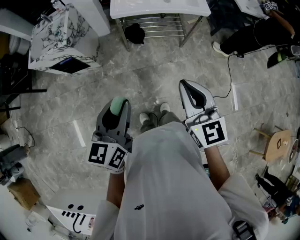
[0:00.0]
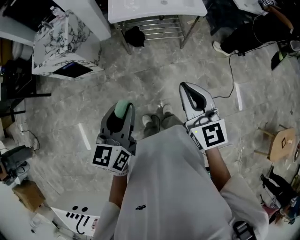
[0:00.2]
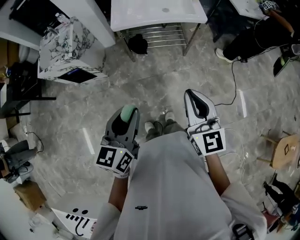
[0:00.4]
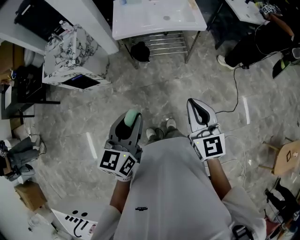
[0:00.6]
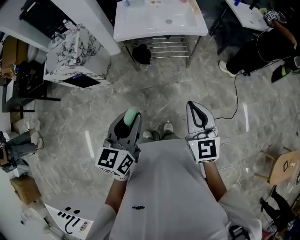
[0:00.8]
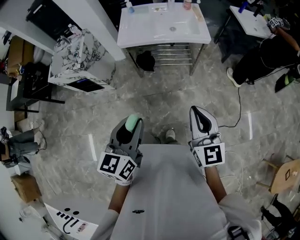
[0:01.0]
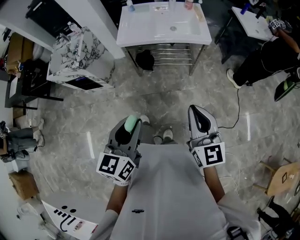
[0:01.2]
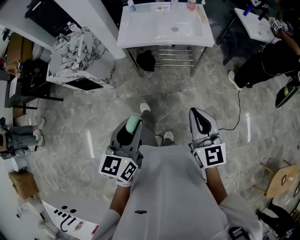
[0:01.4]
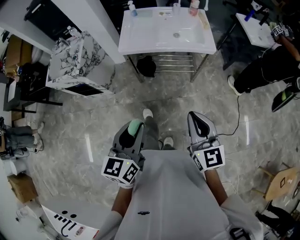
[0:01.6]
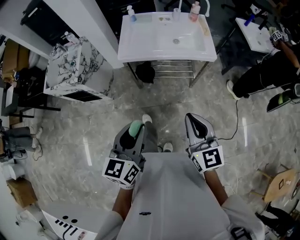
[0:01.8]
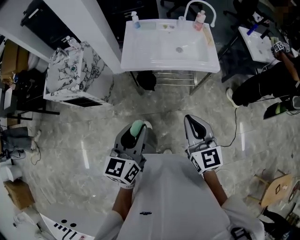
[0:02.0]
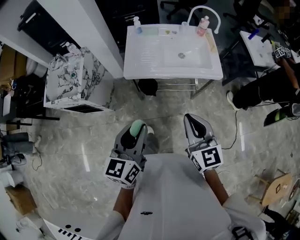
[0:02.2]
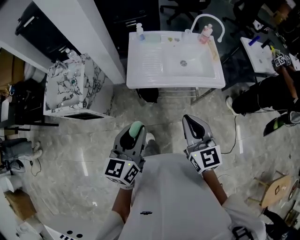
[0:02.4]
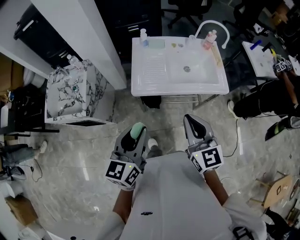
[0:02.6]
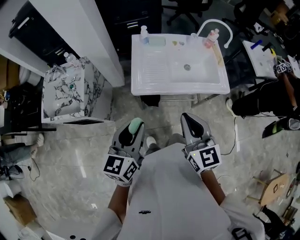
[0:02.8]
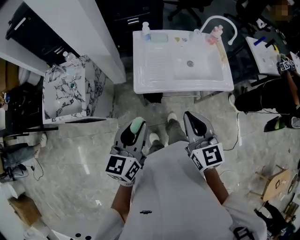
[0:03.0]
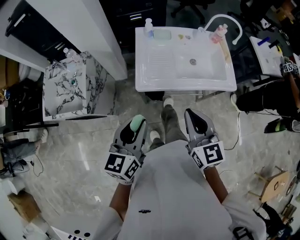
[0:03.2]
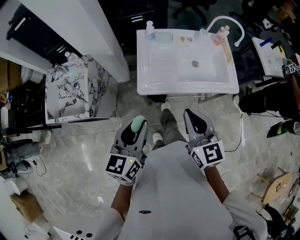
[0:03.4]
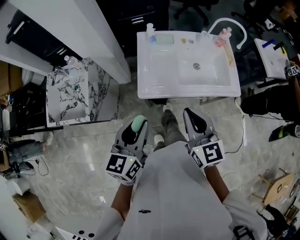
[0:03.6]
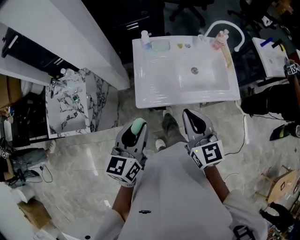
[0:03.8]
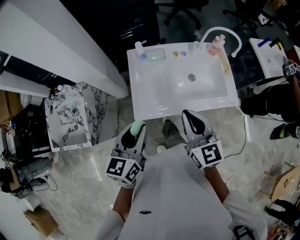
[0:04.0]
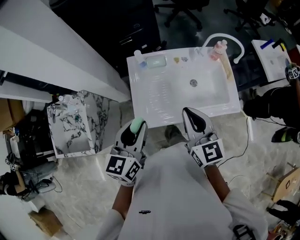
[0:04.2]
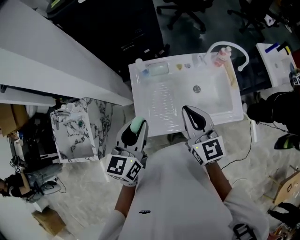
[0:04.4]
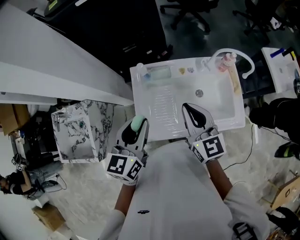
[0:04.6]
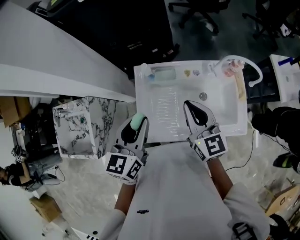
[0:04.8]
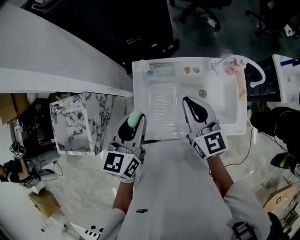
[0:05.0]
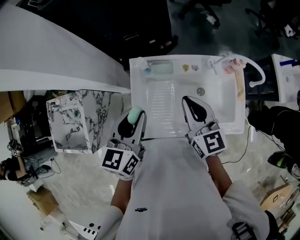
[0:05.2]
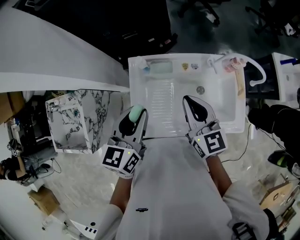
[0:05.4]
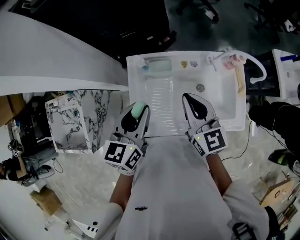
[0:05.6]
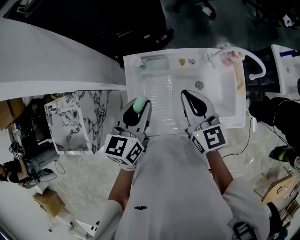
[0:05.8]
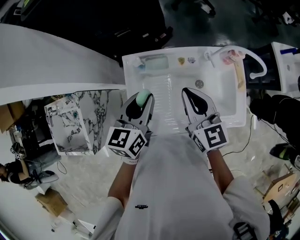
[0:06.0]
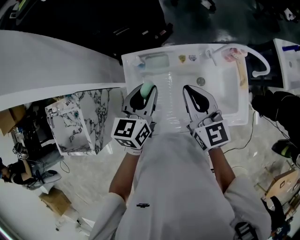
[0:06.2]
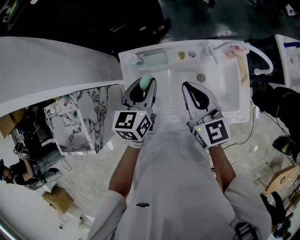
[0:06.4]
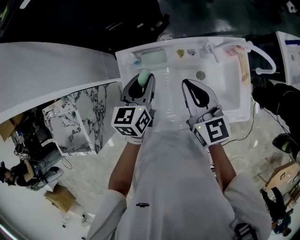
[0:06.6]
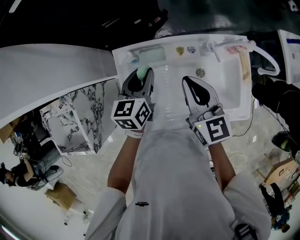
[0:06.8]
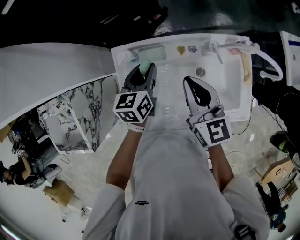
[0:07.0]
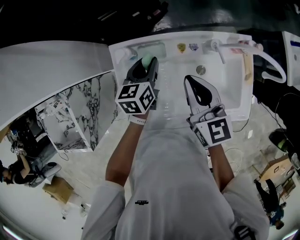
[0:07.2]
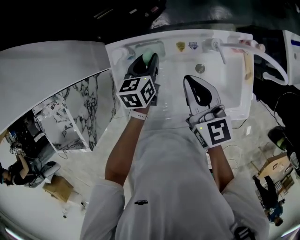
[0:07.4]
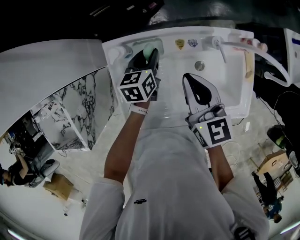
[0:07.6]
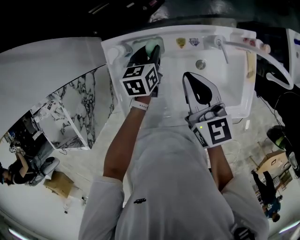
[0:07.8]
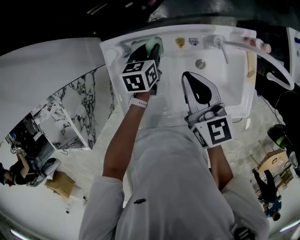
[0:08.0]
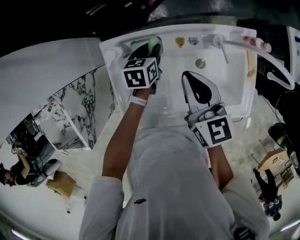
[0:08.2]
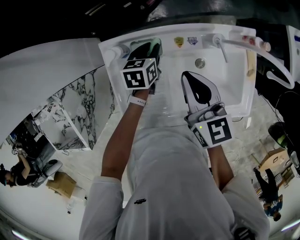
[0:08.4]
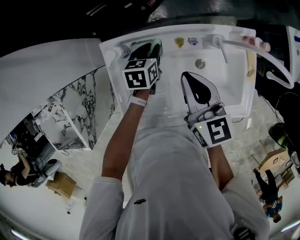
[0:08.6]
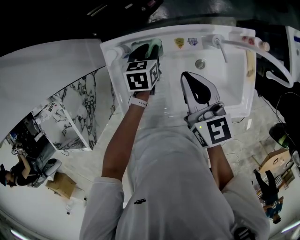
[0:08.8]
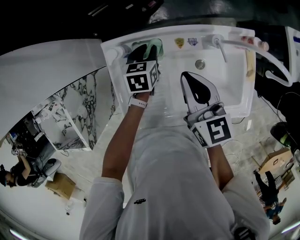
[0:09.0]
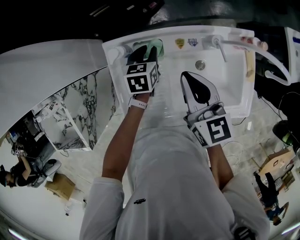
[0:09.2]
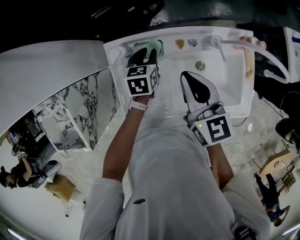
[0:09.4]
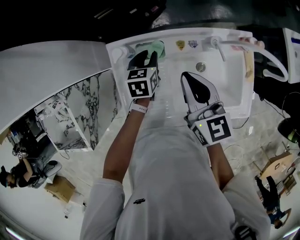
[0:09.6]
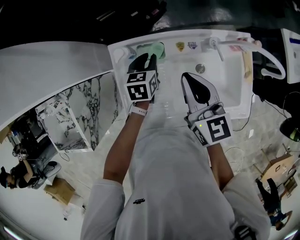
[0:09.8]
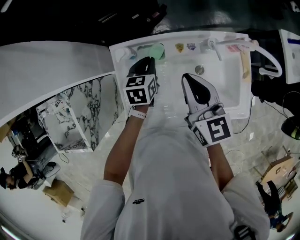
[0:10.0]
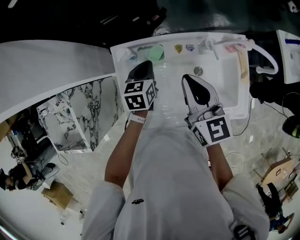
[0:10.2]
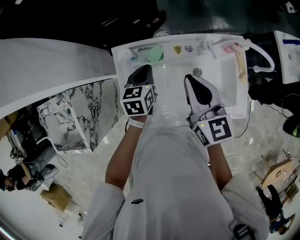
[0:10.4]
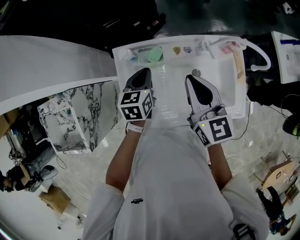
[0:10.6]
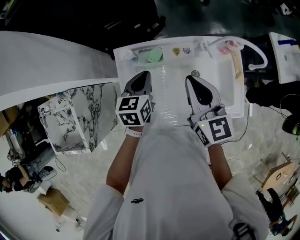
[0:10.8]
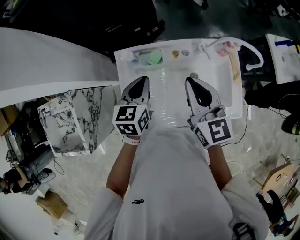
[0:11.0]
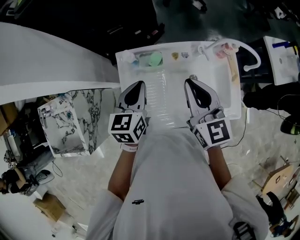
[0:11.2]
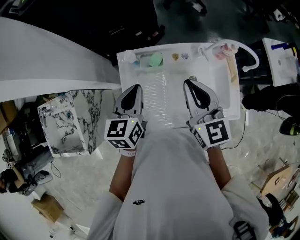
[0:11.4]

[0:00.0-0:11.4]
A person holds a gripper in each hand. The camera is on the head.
0:00.0 to 0:01.4: Both grippers move to the right, roughly 15 cm.
0:01.4 to 0:02.8: The grippers both shift forward and to the left by roughly 40 cm.
0:02.8 to 0:04.2: Both grippers move forward, roughly 25 cm.
0:04.2 to 0:05.6: The grippers both shift forward by about 15 cm.
0:05.6 to 0:07.2: The left gripper is displaced downward and forward by some 25 cm, while the right gripper travels forward and downward by roughly 10 cm.
0:07.2 to 0:08.6: The left gripper shifts about 10 cm downward.
0:08.6 to 0:10.0: The right gripper moves approximately 5 cm. The left gripper moves upward, roughly 5 cm.
0:10.0 to 0:11.4: The left gripper travels upward and backward by roughly 20 cm. Meanwhile the right gripper shifts approximately 10 cm upward and backward.

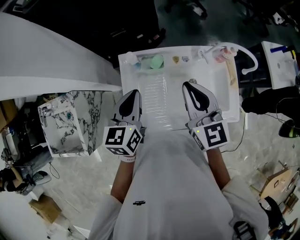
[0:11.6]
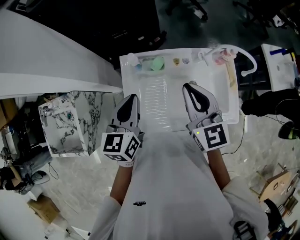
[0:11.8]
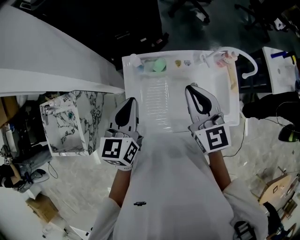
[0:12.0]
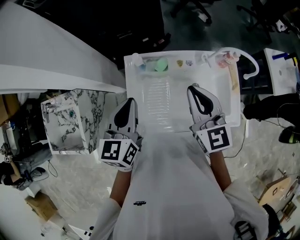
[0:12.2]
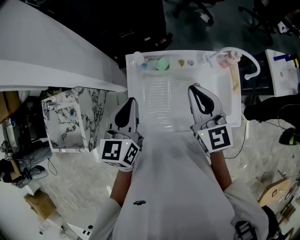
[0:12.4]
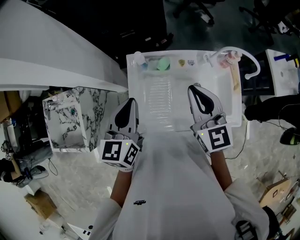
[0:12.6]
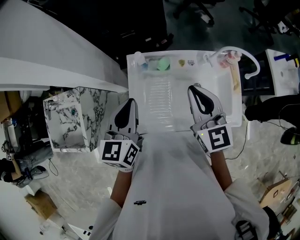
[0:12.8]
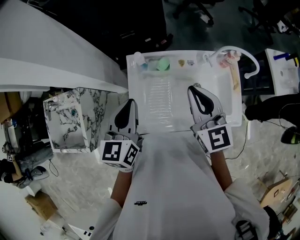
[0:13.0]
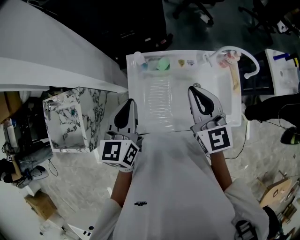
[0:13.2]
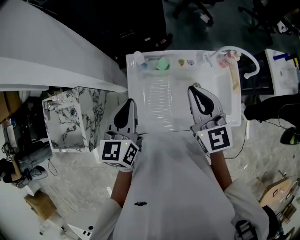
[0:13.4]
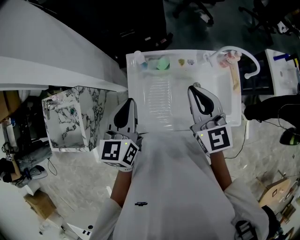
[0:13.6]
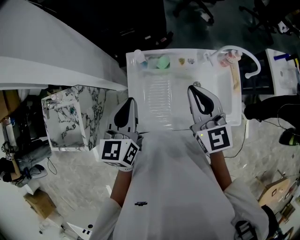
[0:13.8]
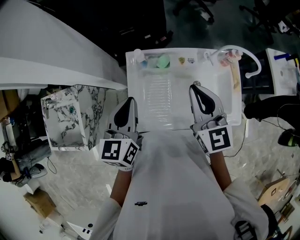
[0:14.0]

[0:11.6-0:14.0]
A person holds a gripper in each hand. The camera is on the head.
0:11.6 to 0:12.8: The left gripper travels upward by approximately 5 cm.
0:12.8 to 0:14.0: Both grippers stay about where they are.

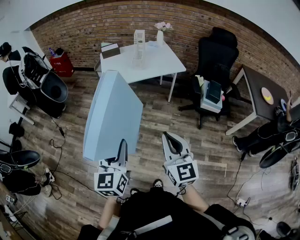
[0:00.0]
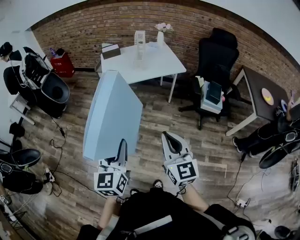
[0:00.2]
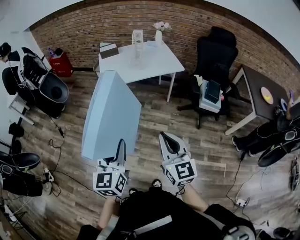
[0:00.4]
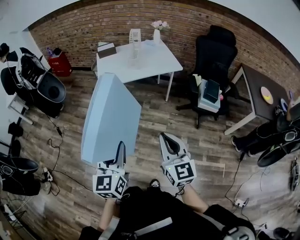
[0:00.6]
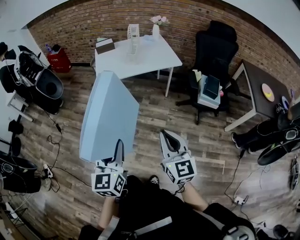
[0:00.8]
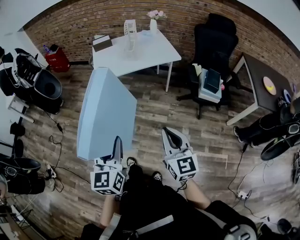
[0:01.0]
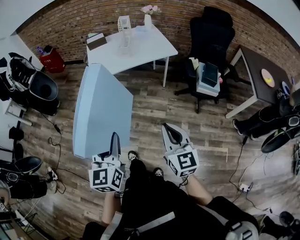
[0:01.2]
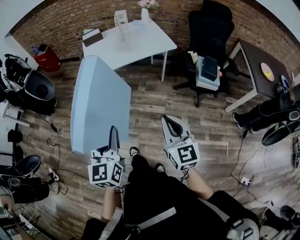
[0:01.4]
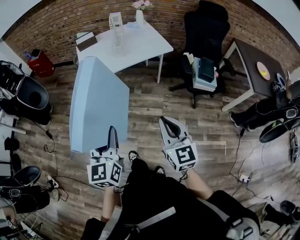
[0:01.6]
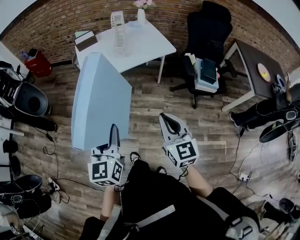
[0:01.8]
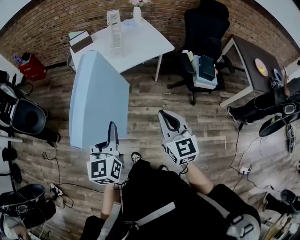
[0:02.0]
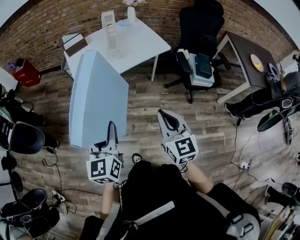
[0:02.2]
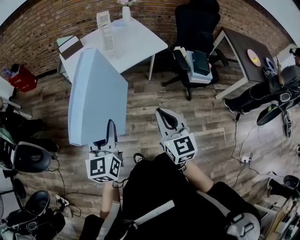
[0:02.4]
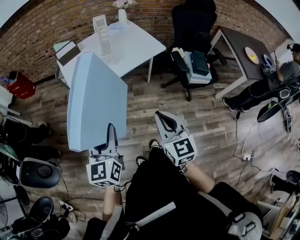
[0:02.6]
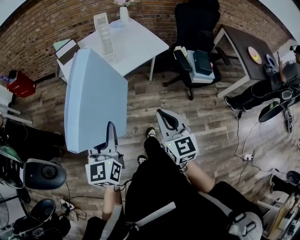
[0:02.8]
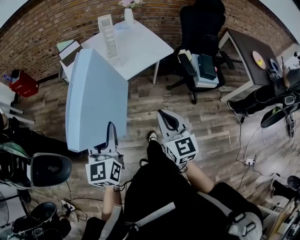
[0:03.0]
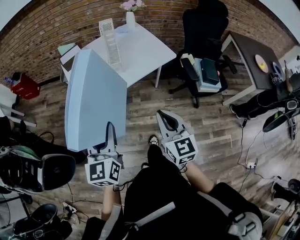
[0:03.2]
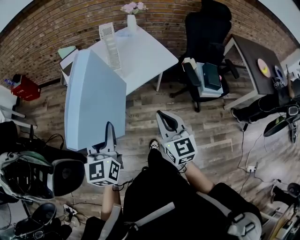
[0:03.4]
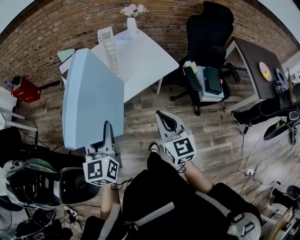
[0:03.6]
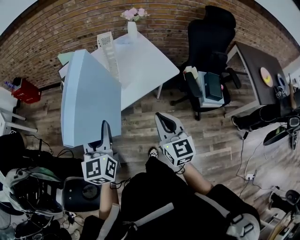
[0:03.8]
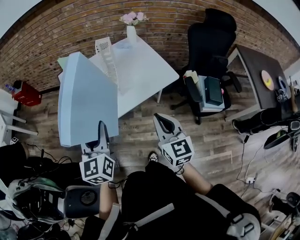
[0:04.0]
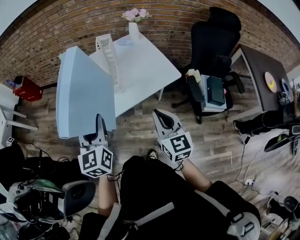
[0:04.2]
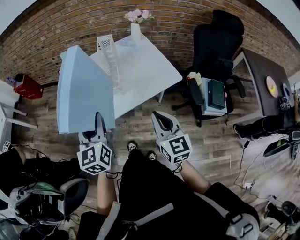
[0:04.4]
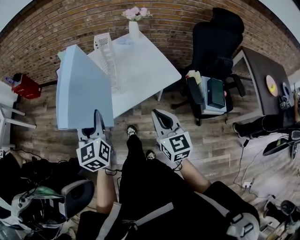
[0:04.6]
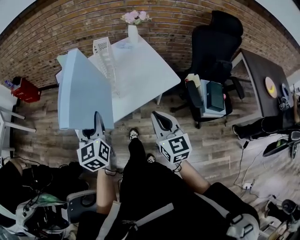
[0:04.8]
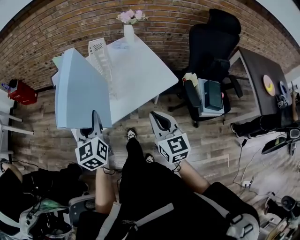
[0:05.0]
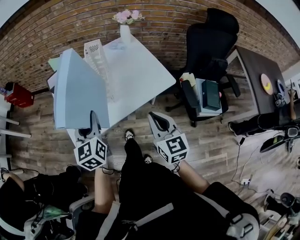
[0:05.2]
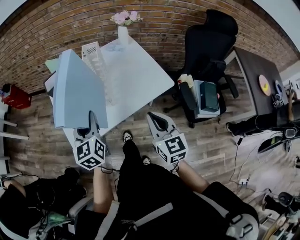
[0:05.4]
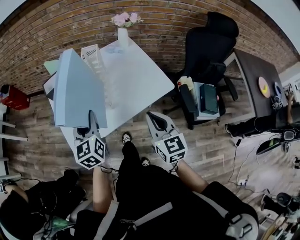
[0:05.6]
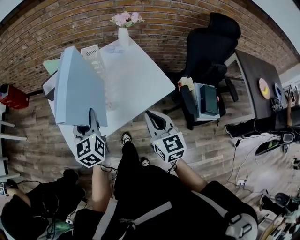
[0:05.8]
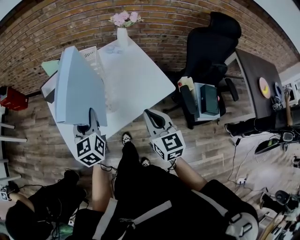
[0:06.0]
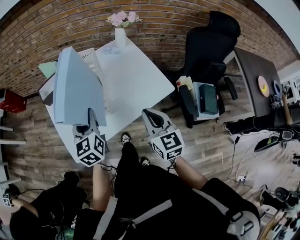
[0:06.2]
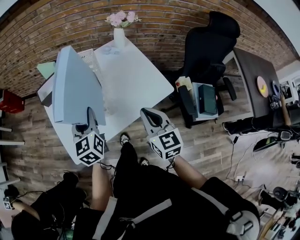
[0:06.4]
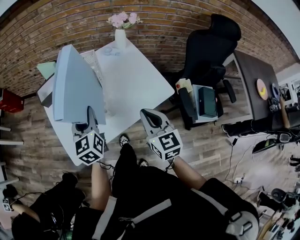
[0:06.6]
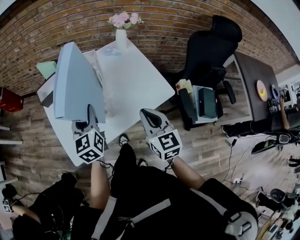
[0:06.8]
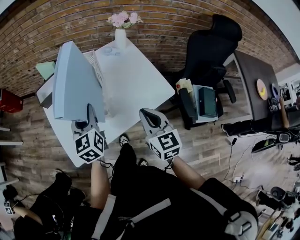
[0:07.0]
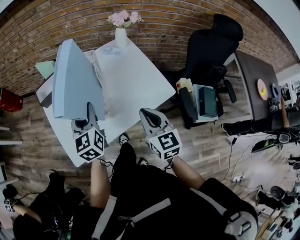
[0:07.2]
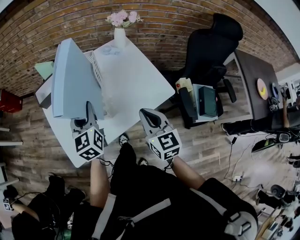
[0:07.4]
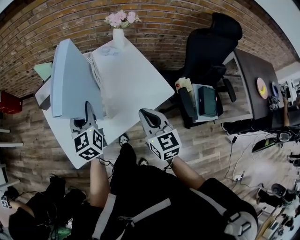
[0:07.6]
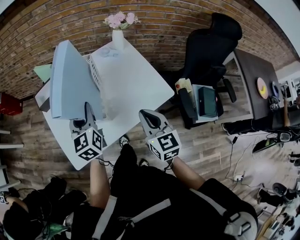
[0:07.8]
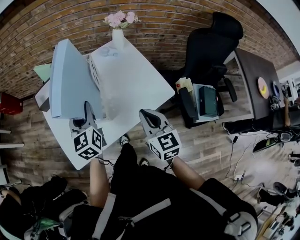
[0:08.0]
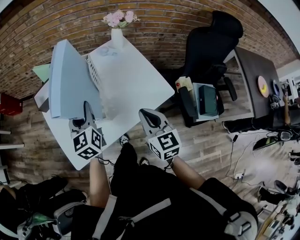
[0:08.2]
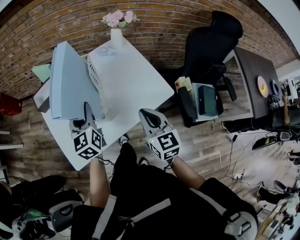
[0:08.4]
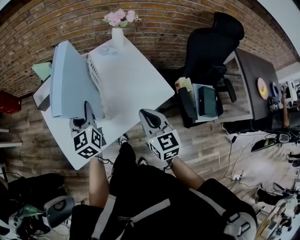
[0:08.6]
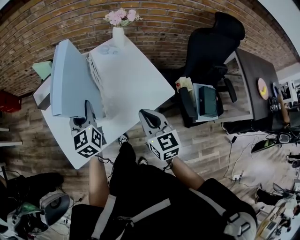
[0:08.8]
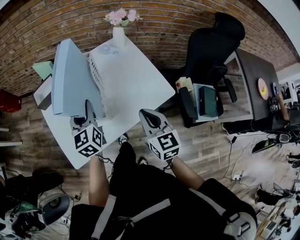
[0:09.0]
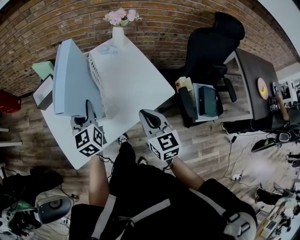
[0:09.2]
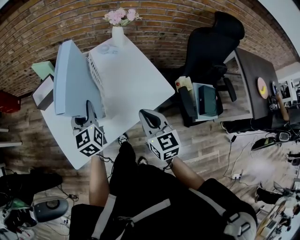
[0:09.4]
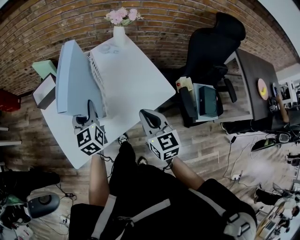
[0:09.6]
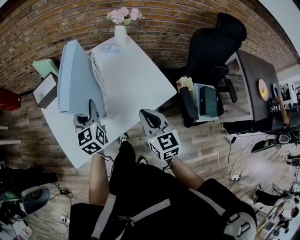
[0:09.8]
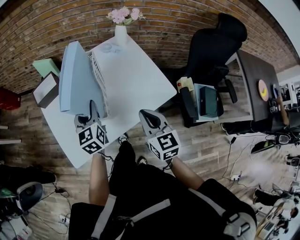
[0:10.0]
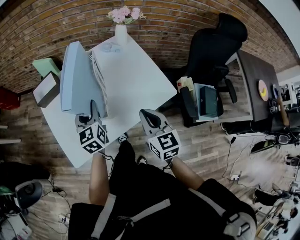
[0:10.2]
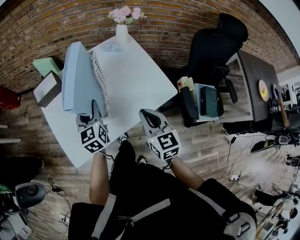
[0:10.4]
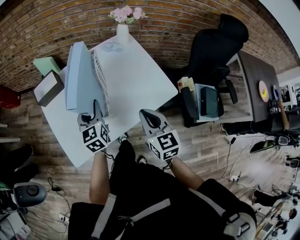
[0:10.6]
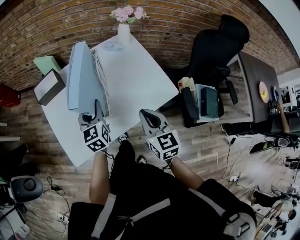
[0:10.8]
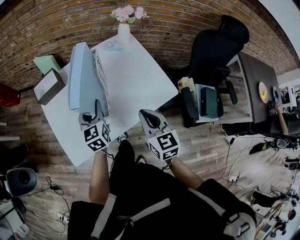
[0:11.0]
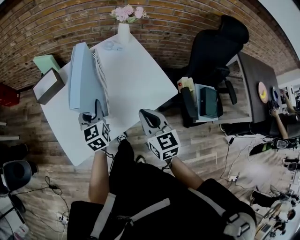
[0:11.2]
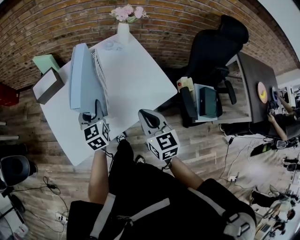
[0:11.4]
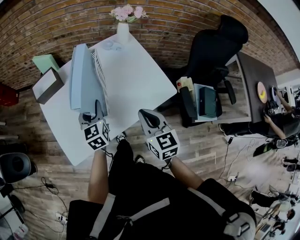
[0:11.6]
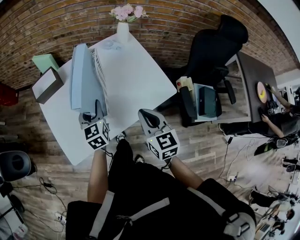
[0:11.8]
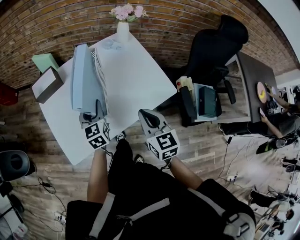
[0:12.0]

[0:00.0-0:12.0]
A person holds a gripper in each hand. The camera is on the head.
0:00.0 to 0:01.6: The left gripper moves forward, roughly 10 cm. The right gripper moves forward and downward, approximately 10 cm.
0:01.6 to 0:03.0: The left gripper shifts some 20 cm forward, while the right gripper travels forward and to the left by roughly 20 cm.
0:03.0 to 0:04.4: Both grippers travel together forward, approximately 25 cm.
0:04.4 to 0:06.0: Both grippers move forward, approximately 15 cm.
0:06.0 to 0:07.6: The two grippers go about 5 cm forward.
0:07.6 to 0:09.0: There are only small adjustments of the grippers.
0:09.0 to 0:10.4: There are only small adjustments of the grippers.
0:10.4 to 0:12.0: The grippers stay close to where they were, moving slightly.
